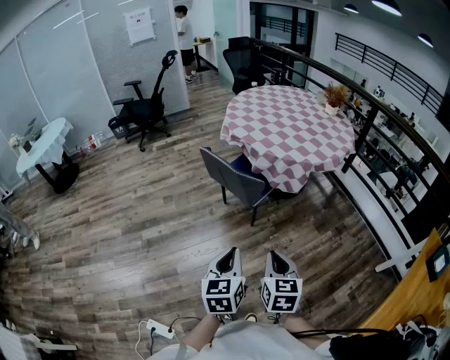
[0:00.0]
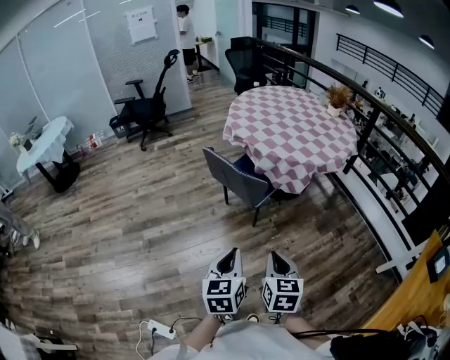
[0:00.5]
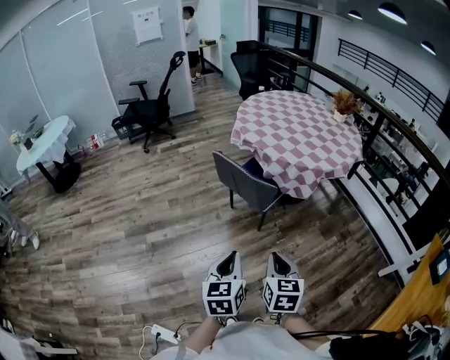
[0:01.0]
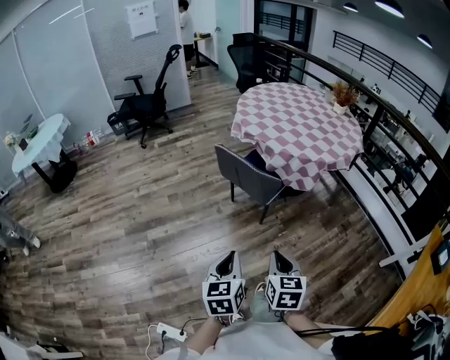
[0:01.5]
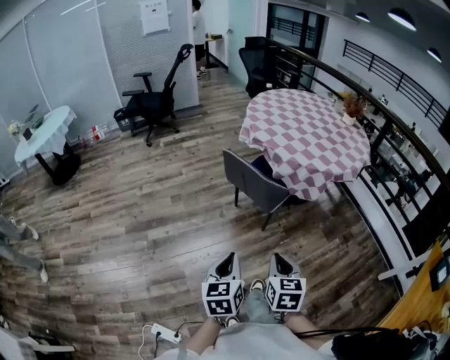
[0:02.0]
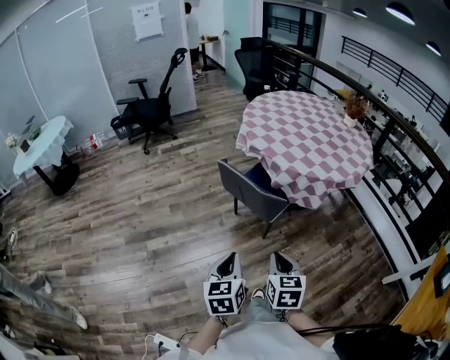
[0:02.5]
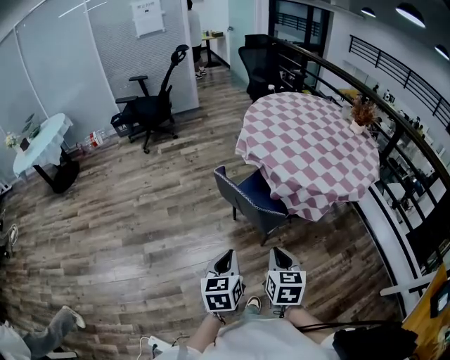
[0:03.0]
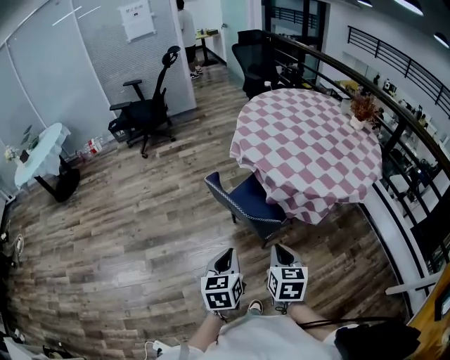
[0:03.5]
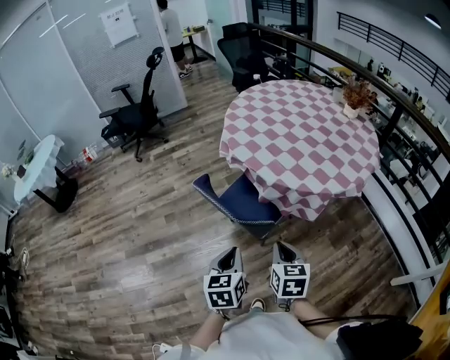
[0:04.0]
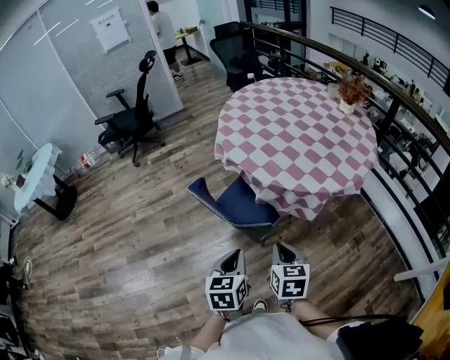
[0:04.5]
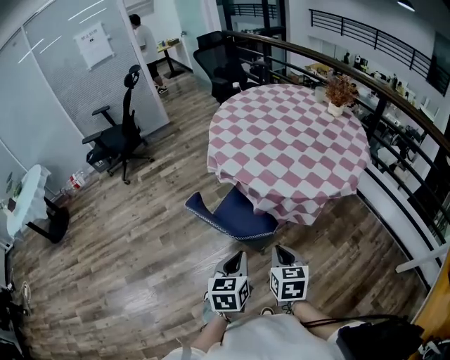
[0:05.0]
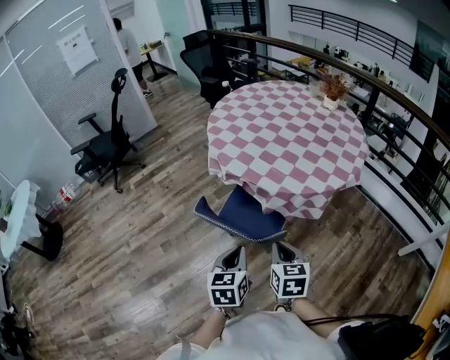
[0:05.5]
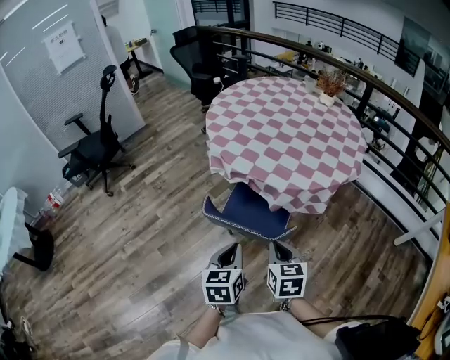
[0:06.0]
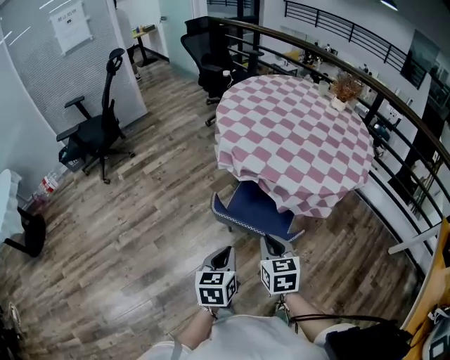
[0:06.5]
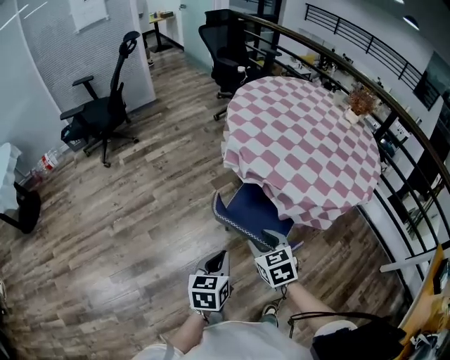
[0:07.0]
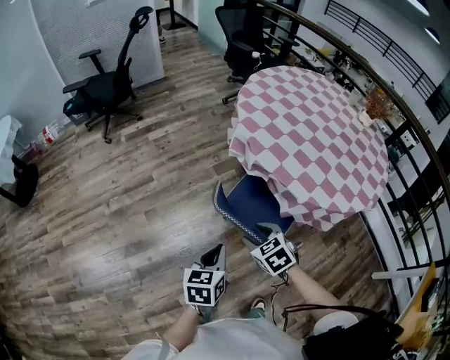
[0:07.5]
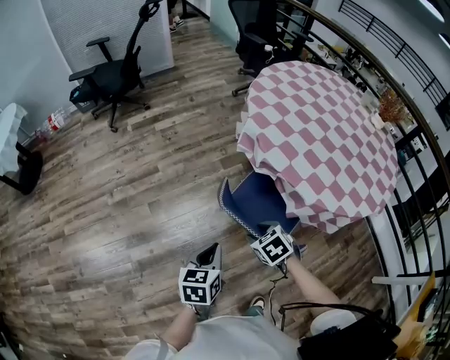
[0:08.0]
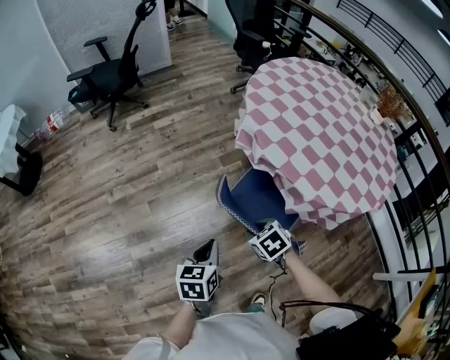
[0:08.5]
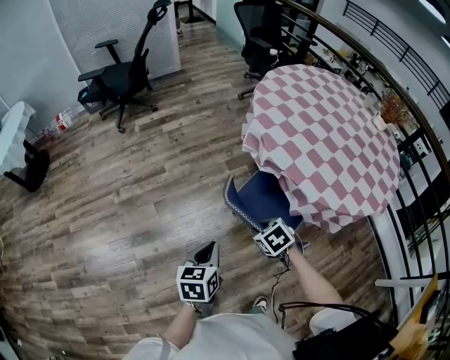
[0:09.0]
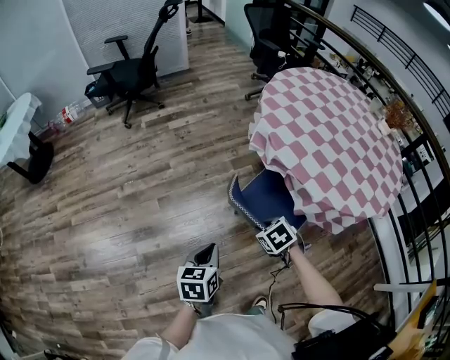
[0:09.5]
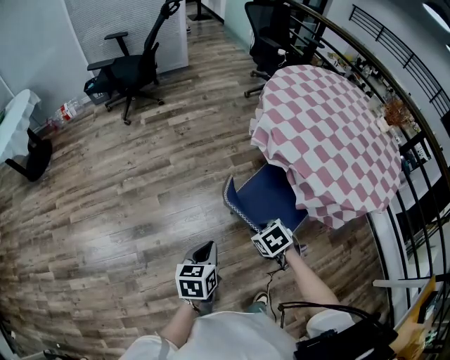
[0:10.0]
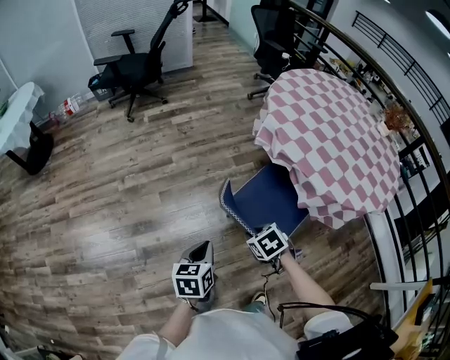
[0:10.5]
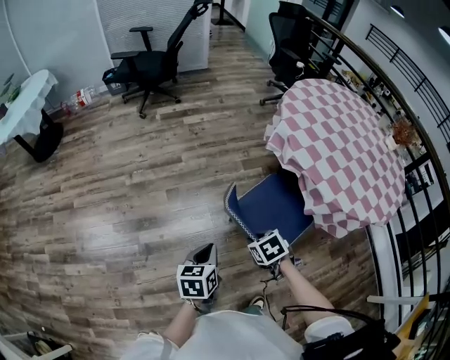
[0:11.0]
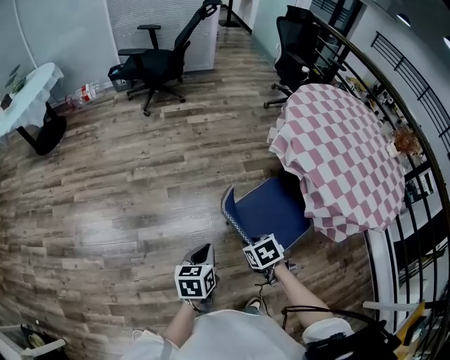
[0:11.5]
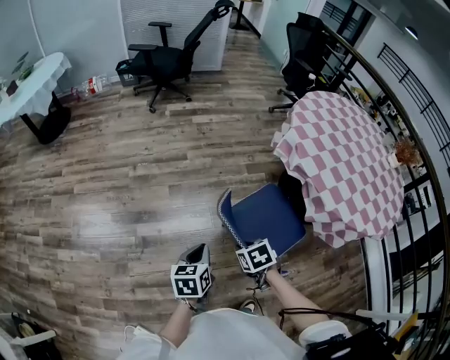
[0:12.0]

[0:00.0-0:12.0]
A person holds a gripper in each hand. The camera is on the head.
0:00.0 to 0:02.0: Both grippers move to the left, roughly 10 cm.
0:02.0 to 0:04.0: The grippers both shift forward and to the right by about 30 cm.
0:04.0 to 0:06.0: The two grippers go some 20 cm to the left and forward. The left gripper rotates approximately 20 degrees.
0:06.0 to 0:08.0: The left gripper changes place by some 15 cm. The right gripper changes place by roughly 20 cm, points its fingers roughly 30 degrees further downward, and opens its fingers.
0:08.0 to 0:10.0: The grippers both shift to the left by approximately 5 cm. The right gripper closes its fingers.
0:10.0 to 0:12.0: The right gripper travels to the left and backward by about 10 cm; the left gripper shifts some 10 cm to the left.

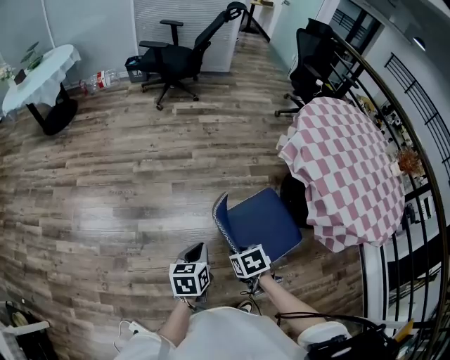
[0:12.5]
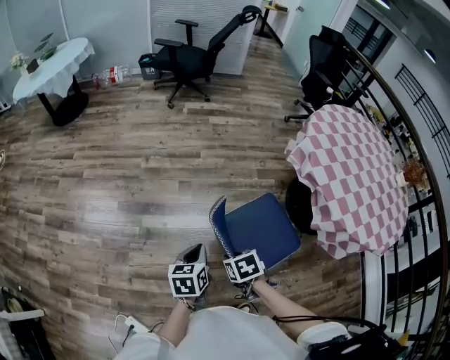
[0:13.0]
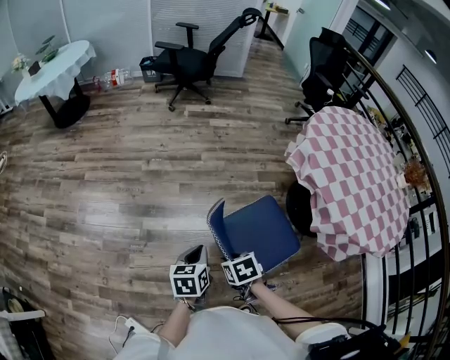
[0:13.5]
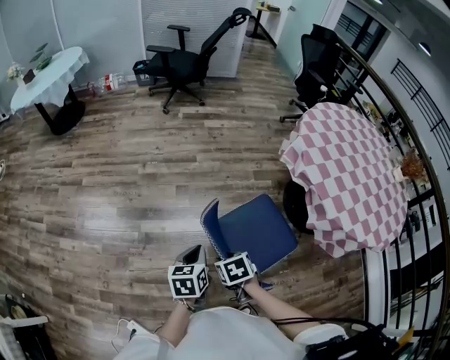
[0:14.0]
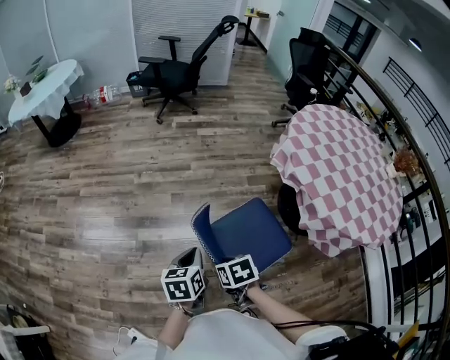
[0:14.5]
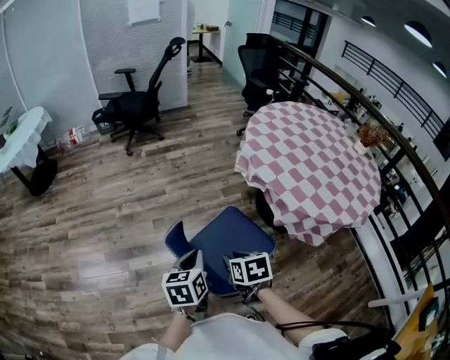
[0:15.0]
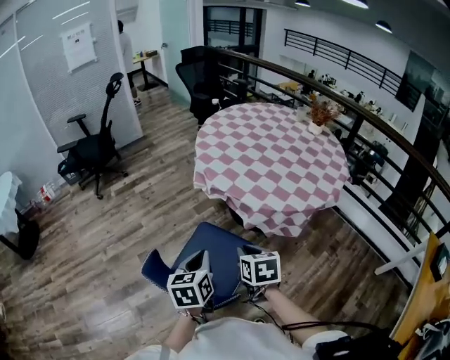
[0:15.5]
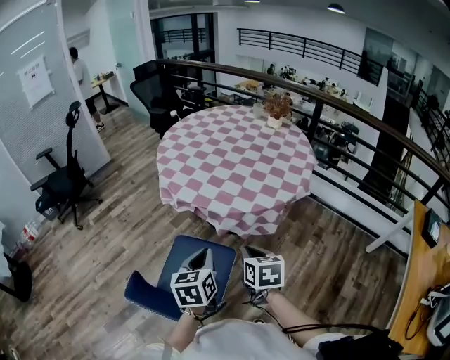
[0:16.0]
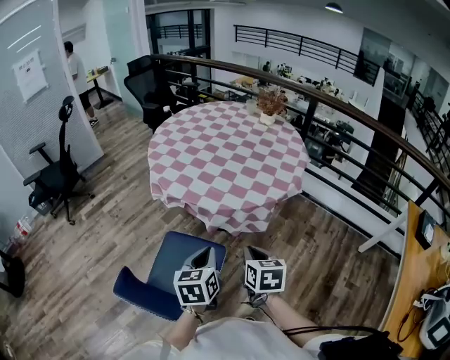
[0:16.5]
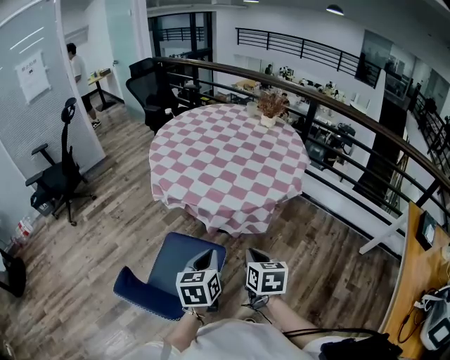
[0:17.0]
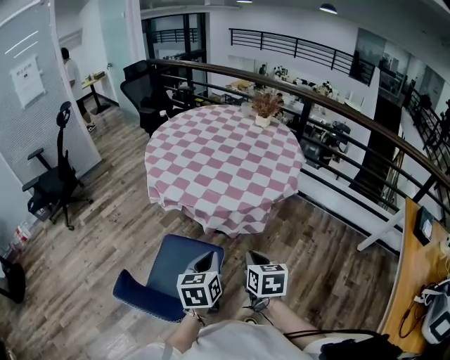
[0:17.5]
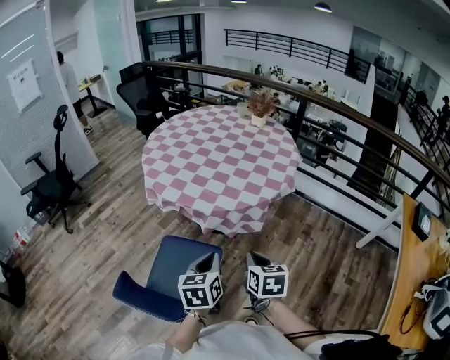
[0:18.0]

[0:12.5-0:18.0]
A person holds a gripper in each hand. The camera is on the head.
0:12.5 to 0:14.5: The right gripper ends up some 5 cm from where it was. Meanwhile the left gripper moves some 5 cm.
0:14.5 to 0:16.0: The left gripper moves about 35 cm, and turns by roughly 40 degrees, while the right gripper changes place by approximately 40 cm, swivels about 60 degrees, and closes.
0:16.0 to 0:18.0: Both grippers move to the right, about 5 cm.

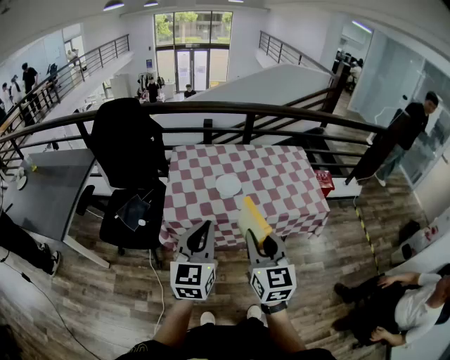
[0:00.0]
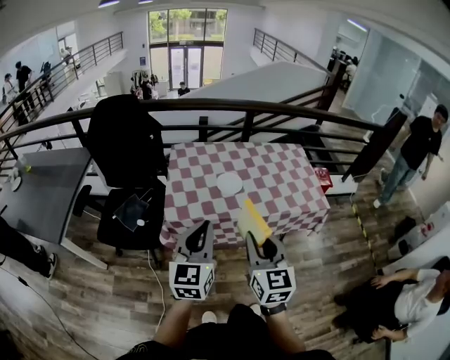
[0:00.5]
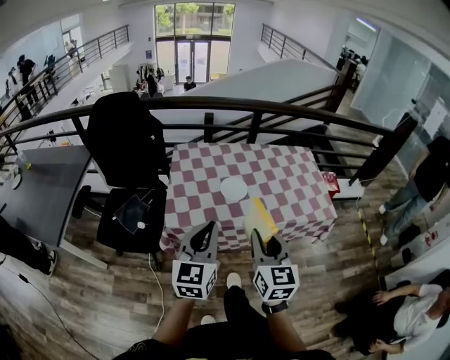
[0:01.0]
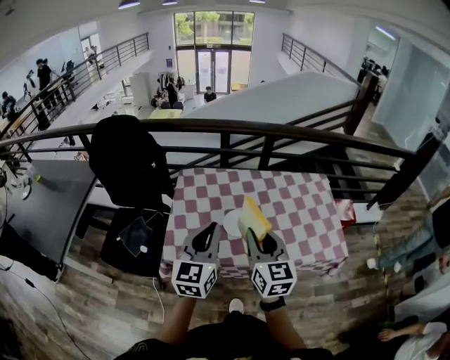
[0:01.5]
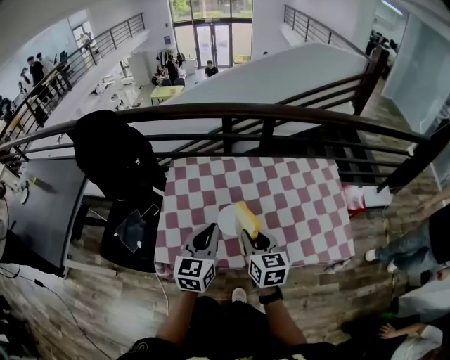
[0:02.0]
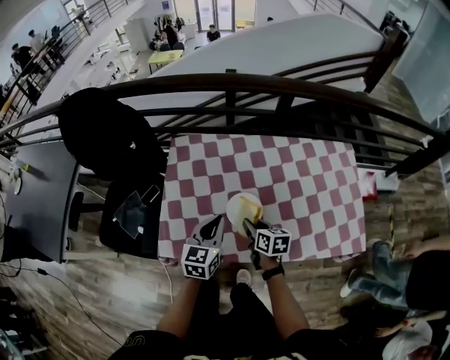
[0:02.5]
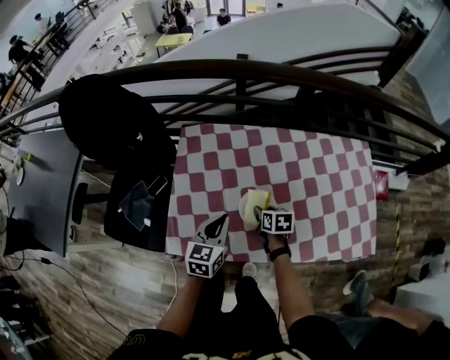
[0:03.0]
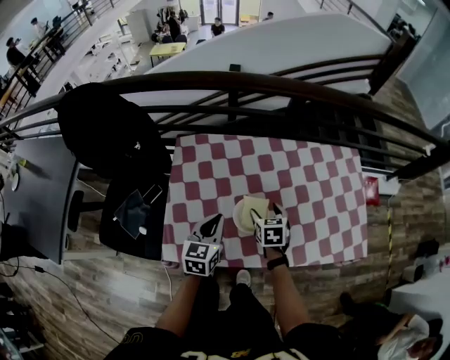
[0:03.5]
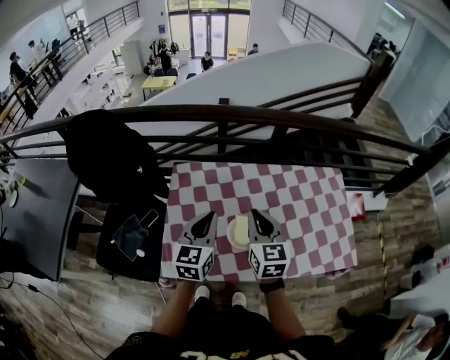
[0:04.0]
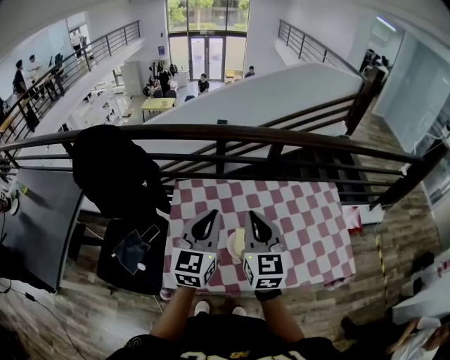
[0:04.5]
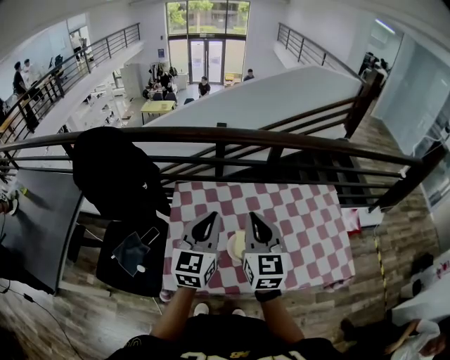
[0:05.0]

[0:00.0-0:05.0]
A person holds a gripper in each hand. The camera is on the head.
0:00.0 to 0:02.5: The two grippers go roughly 50 cm forward and downward. The left gripper turns by approximately 20 degrees; the right gripper points its fingers some 30 degrees further downward.
0:02.5 to 0:05.0: The left gripper moves upward, roughly 20 cm, and turns by approximately 20 degrees. The right gripper travels upward by some 30 cm, angles its fingers upward, by roughly 30 degrees, and opens and closes again.

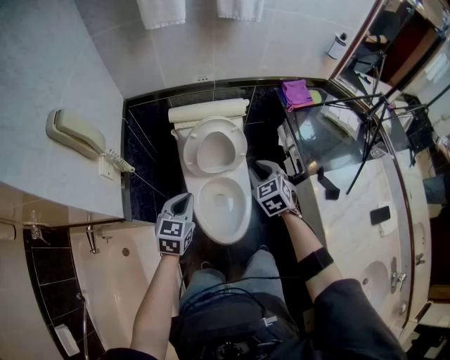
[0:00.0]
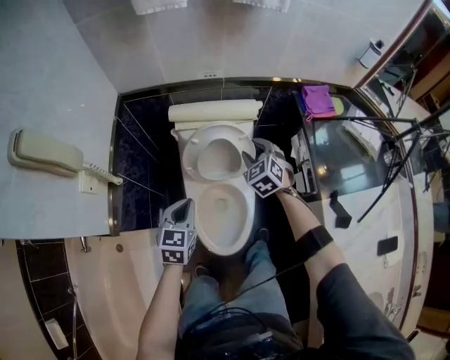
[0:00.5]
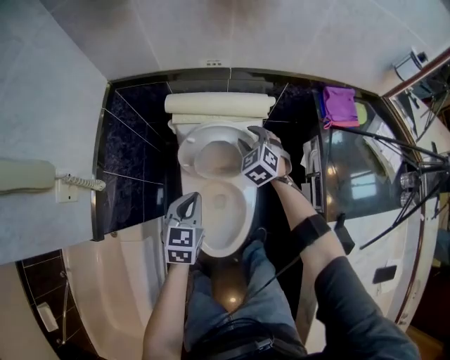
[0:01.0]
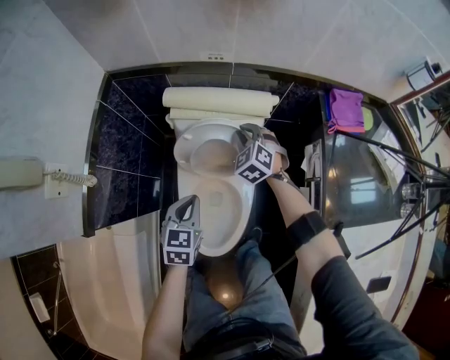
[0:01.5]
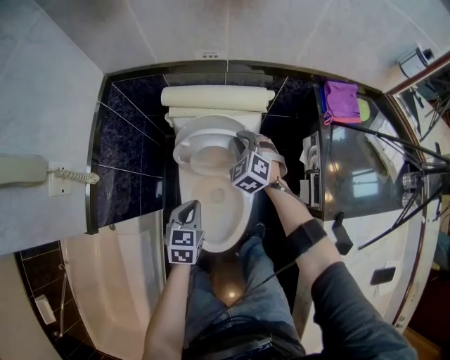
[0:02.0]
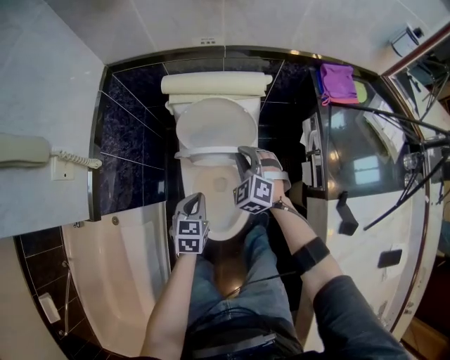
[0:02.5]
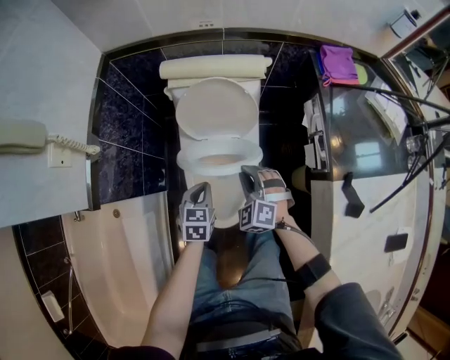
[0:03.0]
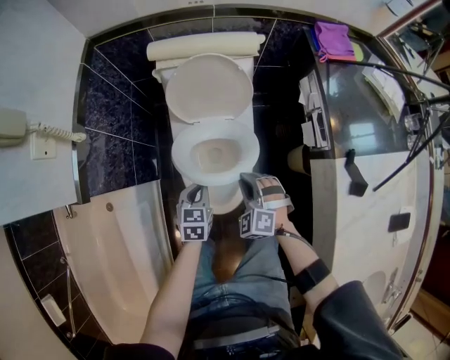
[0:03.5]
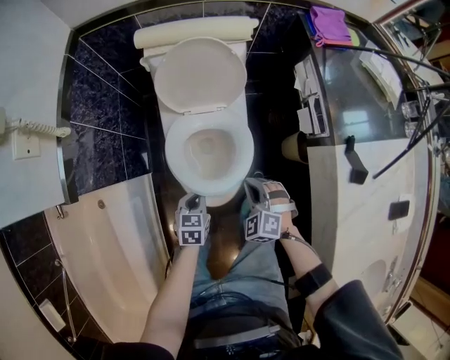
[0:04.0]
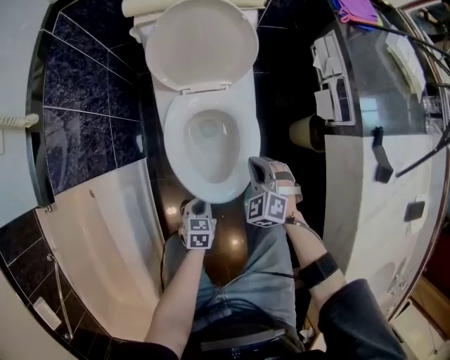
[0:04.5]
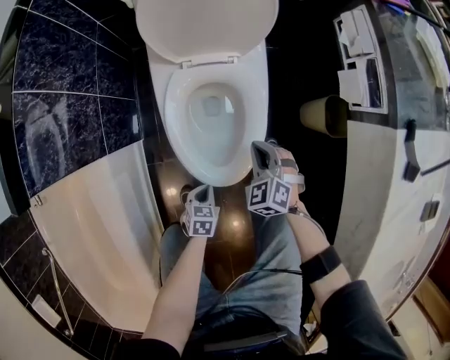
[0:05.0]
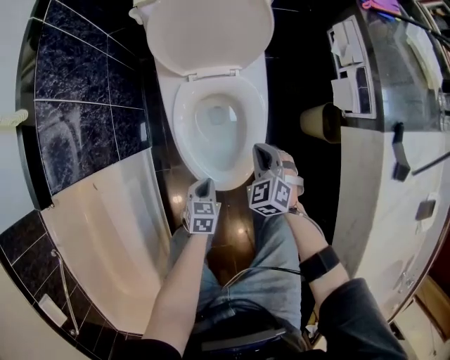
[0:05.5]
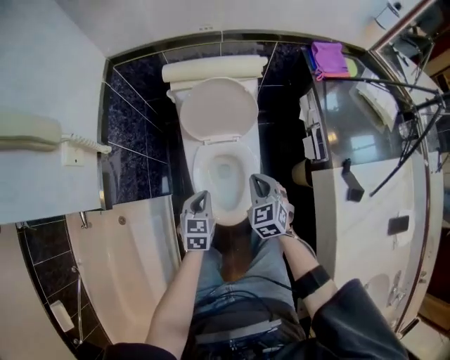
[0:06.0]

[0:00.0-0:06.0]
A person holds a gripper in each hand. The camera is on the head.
0:00.0 to 0:02.0: The right gripper travels forward and downward by roughly 30 cm, and rotates about 30 degrees. Meanwhile the left gripper heads downward, forward and to the right, covering some 20 cm.
0:02.0 to 0:04.0: The right gripper goes about 35 cm backward. Meanwhile the left gripper travels backward and downward by some 25 cm.
0:04.0 to 0:06.0: Both grippers move upward and forward, some 15 cm. The right gripper turns by approximately 30 degrees.
